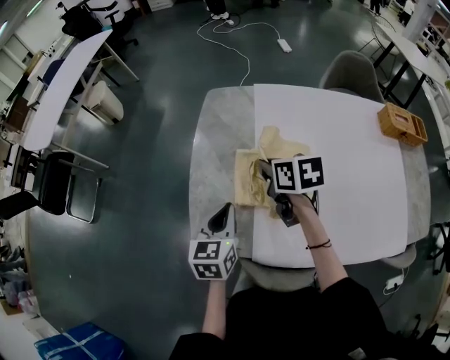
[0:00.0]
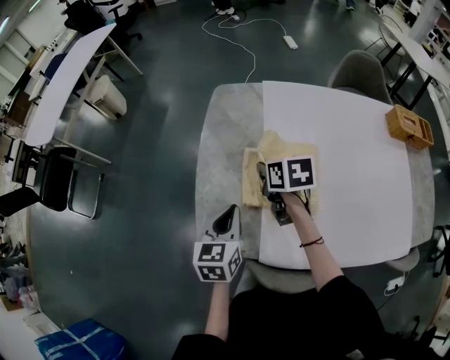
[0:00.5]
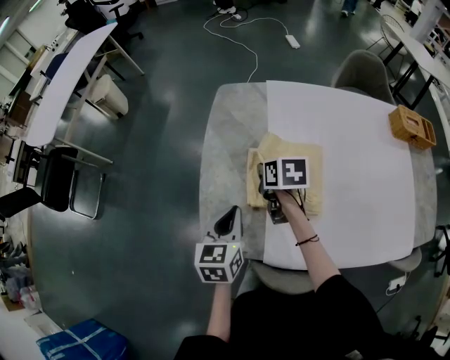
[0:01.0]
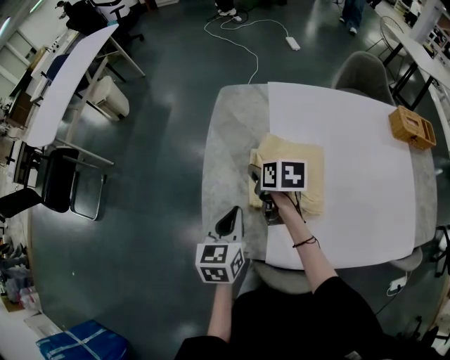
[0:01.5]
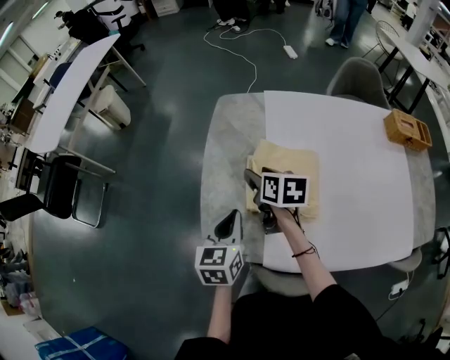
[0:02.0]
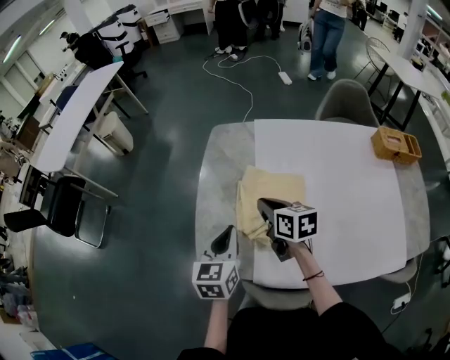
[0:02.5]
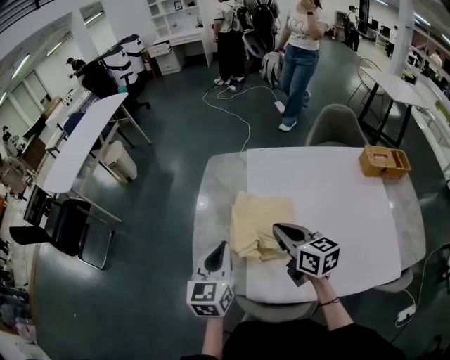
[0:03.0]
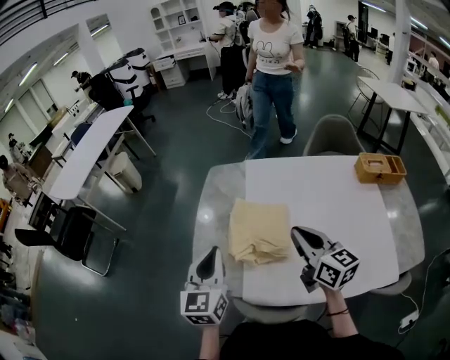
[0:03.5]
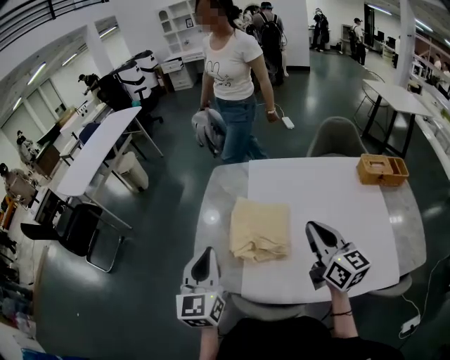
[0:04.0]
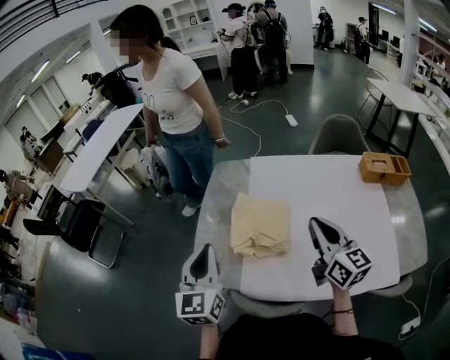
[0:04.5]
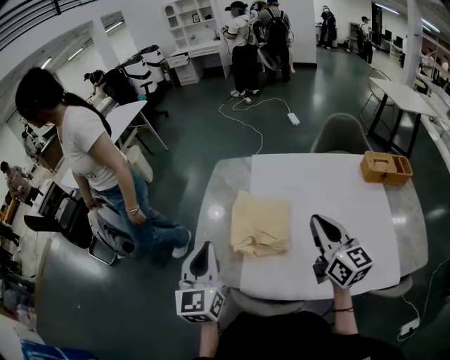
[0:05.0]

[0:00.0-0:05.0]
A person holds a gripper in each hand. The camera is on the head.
0:00.0 to 0:02.5: The right gripper opens and closes again.
0:02.5 to 0:05.0: The right gripper goes approximately 30 cm to the right, upward and backward, and points its fingers approximately 30 degrees further upward. Meanwhile the left gripper travels upward and backward by approximately 15 cm, and rotates some 30 degrees.

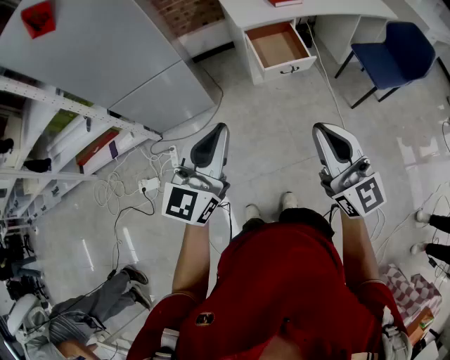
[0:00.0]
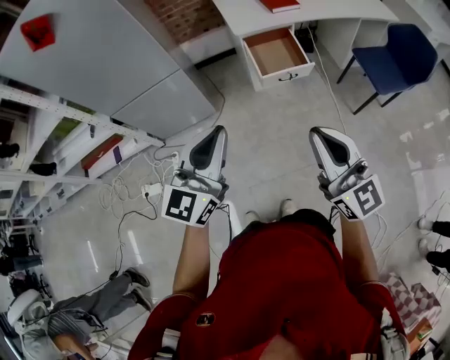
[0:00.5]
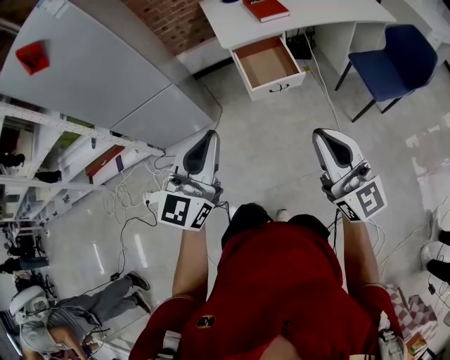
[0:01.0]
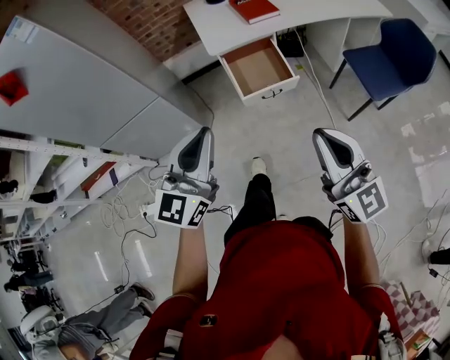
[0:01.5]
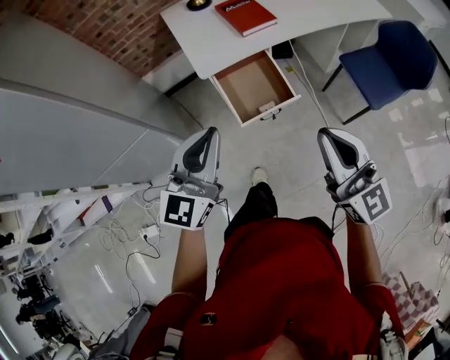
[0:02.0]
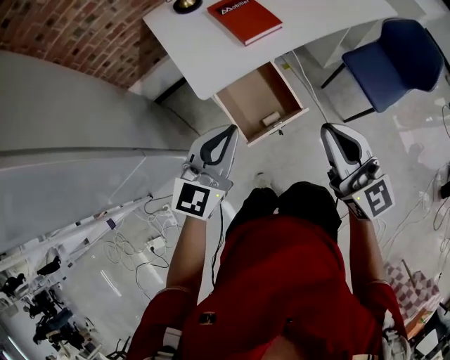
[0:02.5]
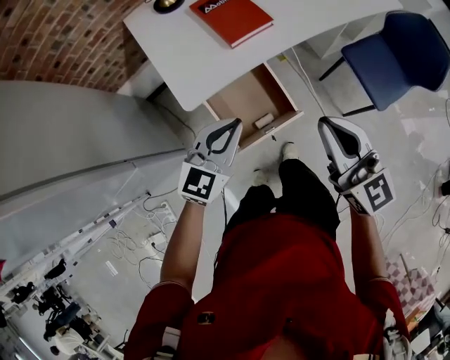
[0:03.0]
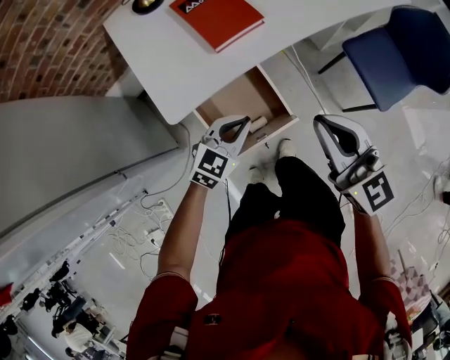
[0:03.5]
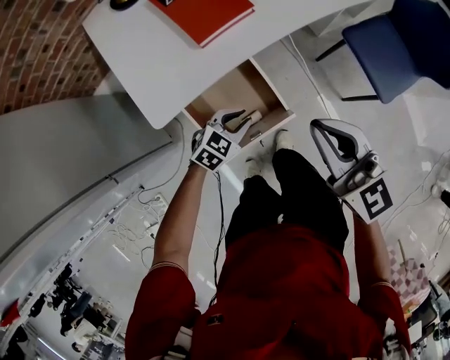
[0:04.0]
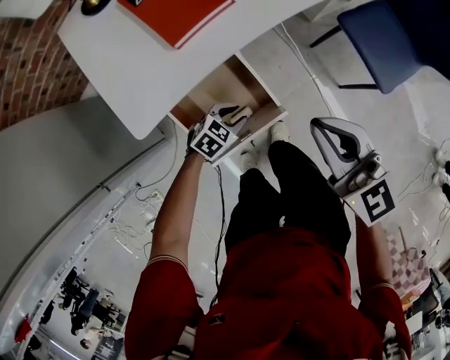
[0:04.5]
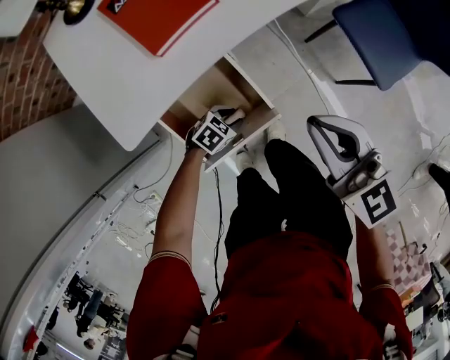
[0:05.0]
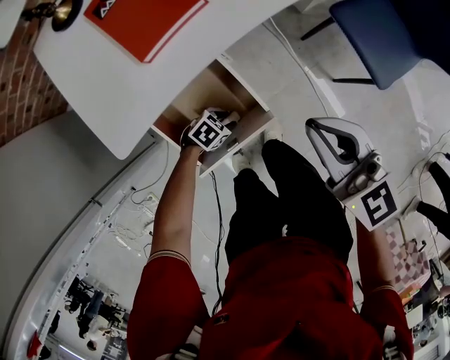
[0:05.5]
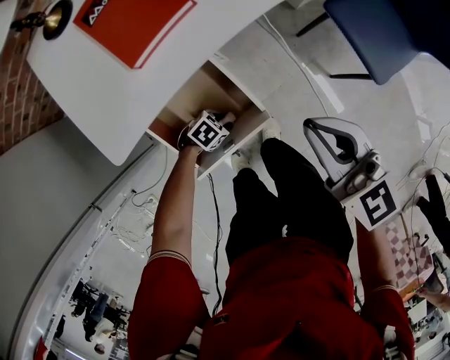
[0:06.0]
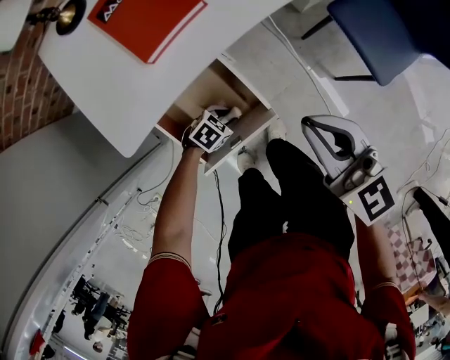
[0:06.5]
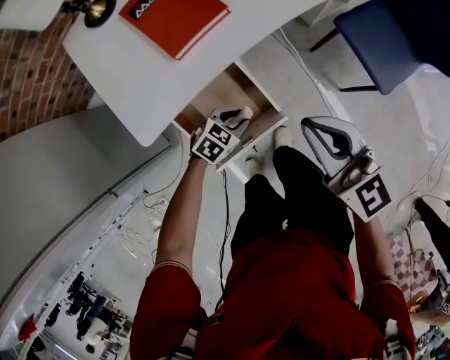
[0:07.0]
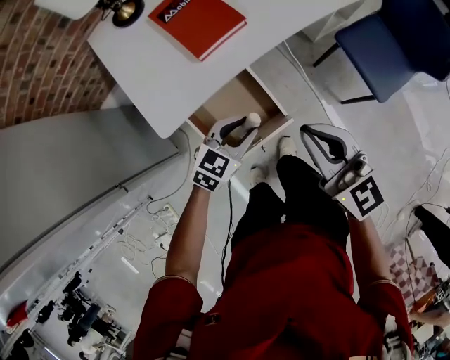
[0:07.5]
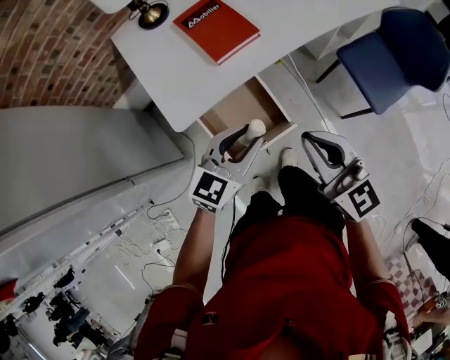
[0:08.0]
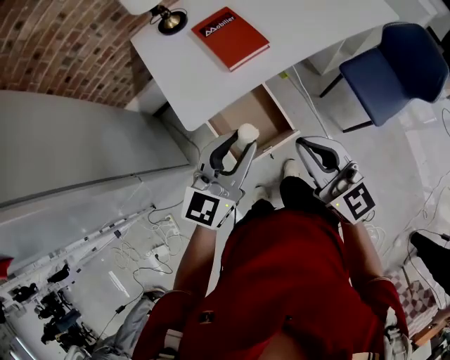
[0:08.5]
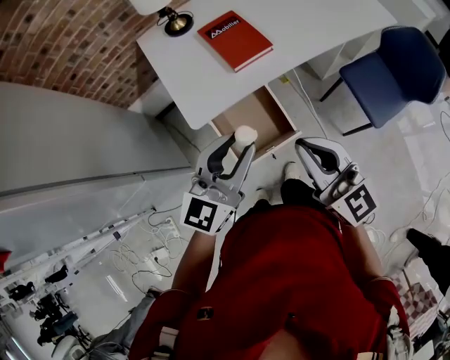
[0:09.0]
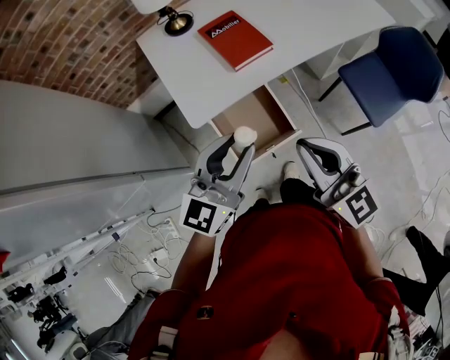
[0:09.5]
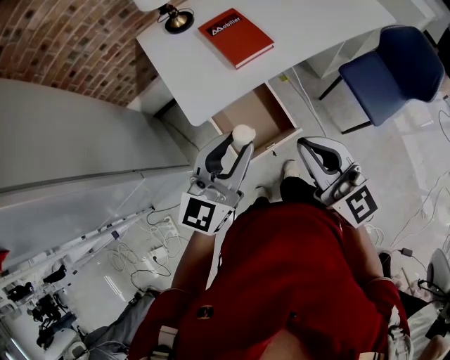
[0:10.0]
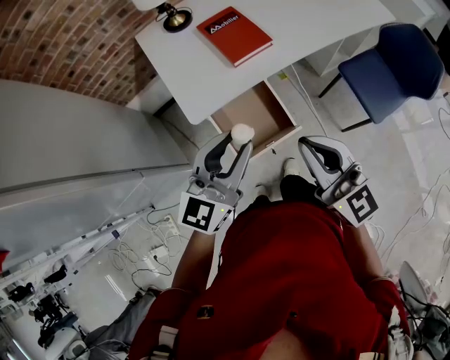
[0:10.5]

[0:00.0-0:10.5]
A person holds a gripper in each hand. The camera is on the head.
0:00.0 to 0:02.0: The left gripper travels forward by some 35 cm. Meanwhile the right gripper is displaced forward and to the right by some 35 cm.
0:02.0 to 0:04.0: The right gripper travels forward and downward by approximately 30 cm; the left gripper heads downward and forward, covering approximately 50 cm, tips its fingers downward by some 50 degrees, and opens.
0:04.0 to 0:06.5: The left gripper is displaced downward by about 15 cm, and changes its angle by some 30 degrees; the right gripper shifts approximately 5 cm downward.
0:06.5 to 0:08.5: The right gripper moves upward, about 15 cm. The left gripper is displaced upward by roughly 50 cm, and points its fingers approximately 60 degrees further upward.
0:08.5 to 0:10.5: The left gripper shifts by approximately 5 cm.

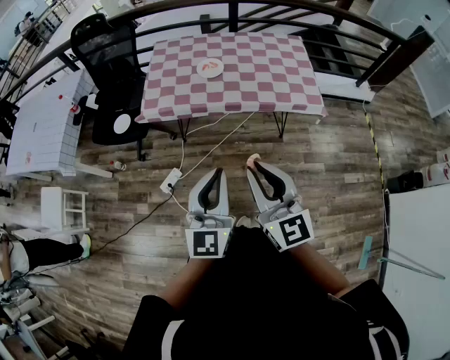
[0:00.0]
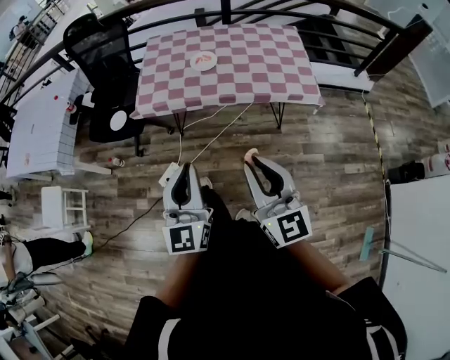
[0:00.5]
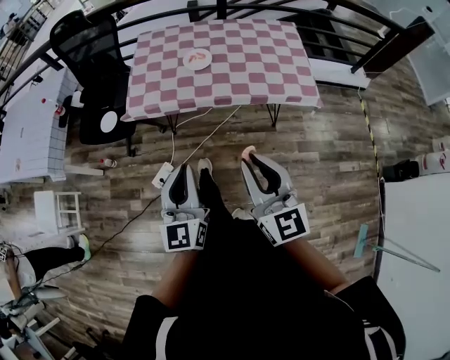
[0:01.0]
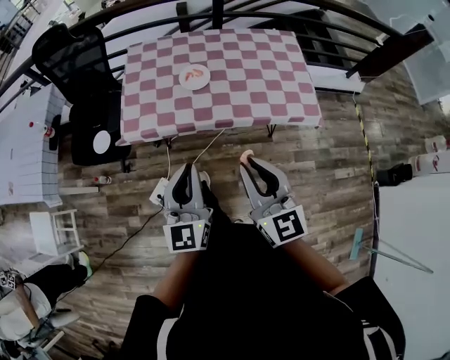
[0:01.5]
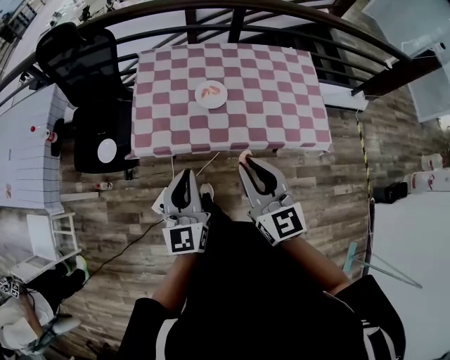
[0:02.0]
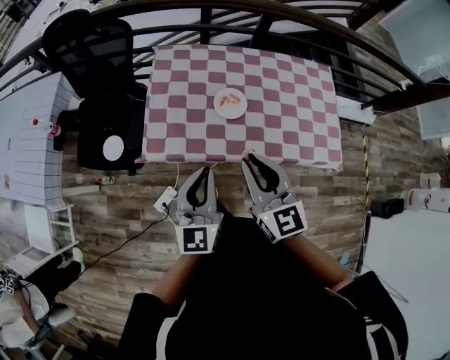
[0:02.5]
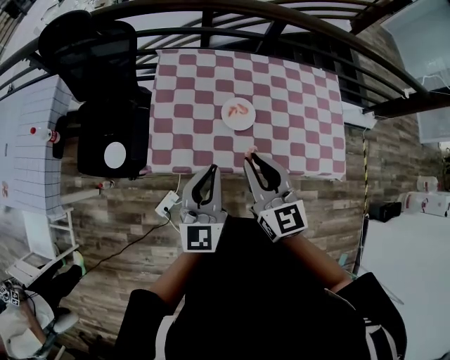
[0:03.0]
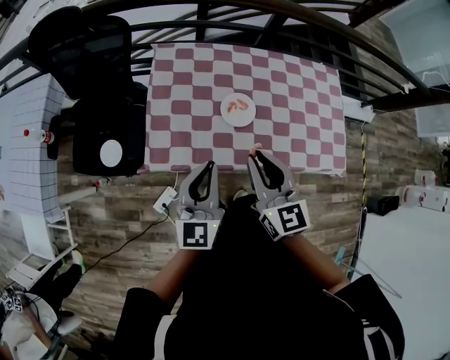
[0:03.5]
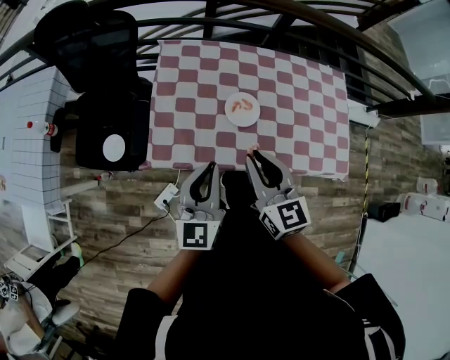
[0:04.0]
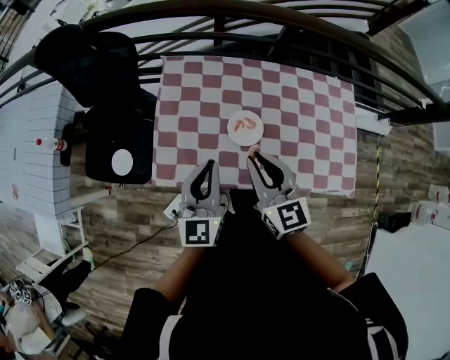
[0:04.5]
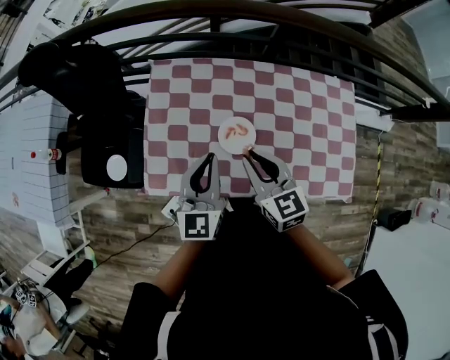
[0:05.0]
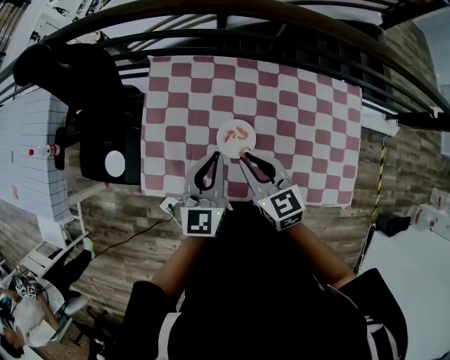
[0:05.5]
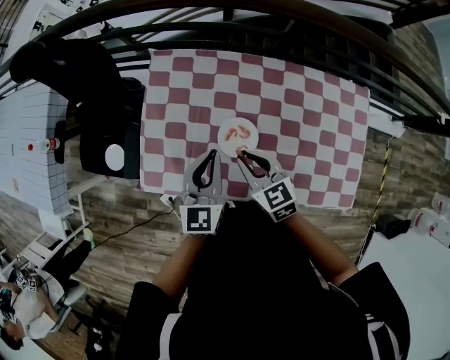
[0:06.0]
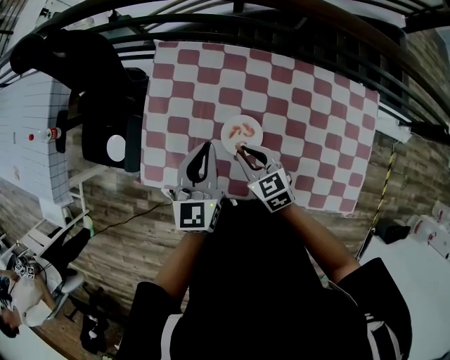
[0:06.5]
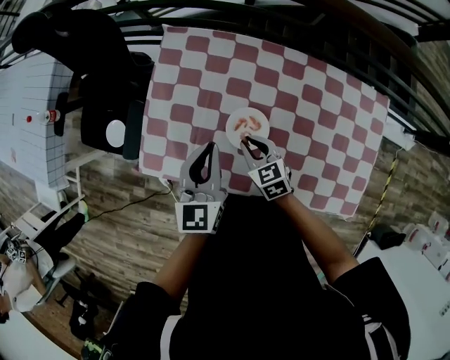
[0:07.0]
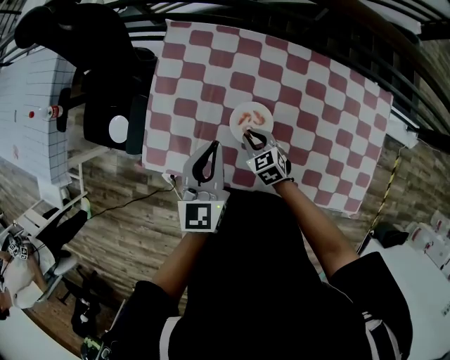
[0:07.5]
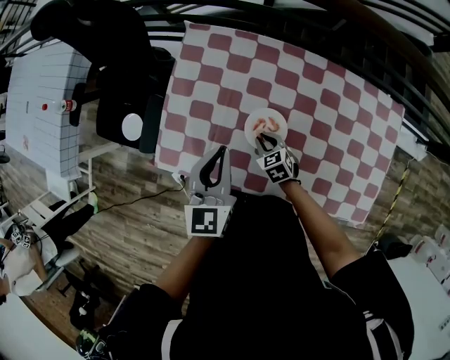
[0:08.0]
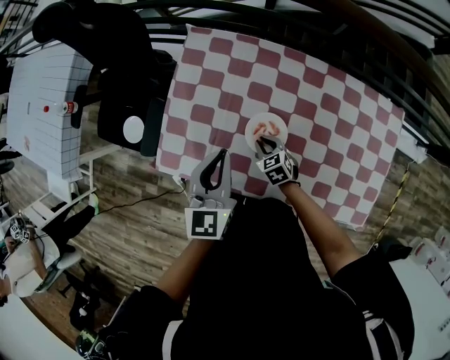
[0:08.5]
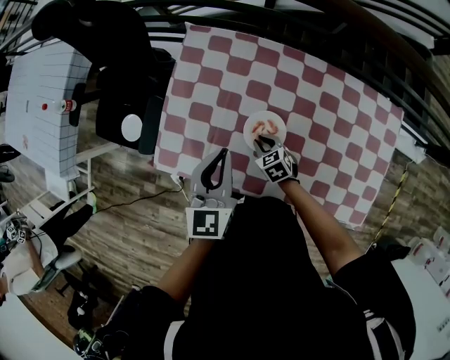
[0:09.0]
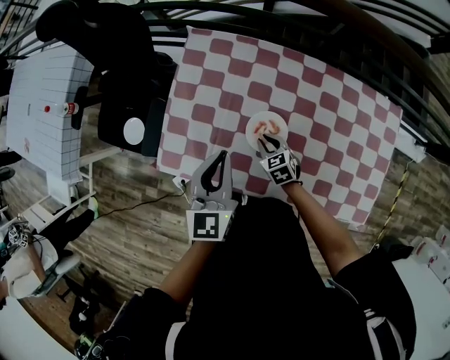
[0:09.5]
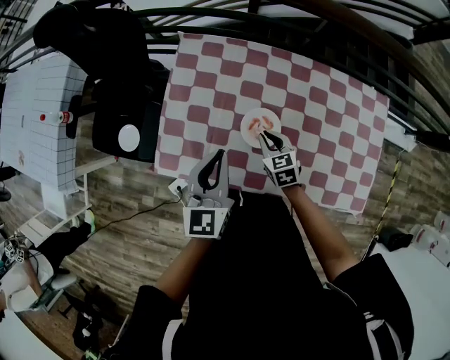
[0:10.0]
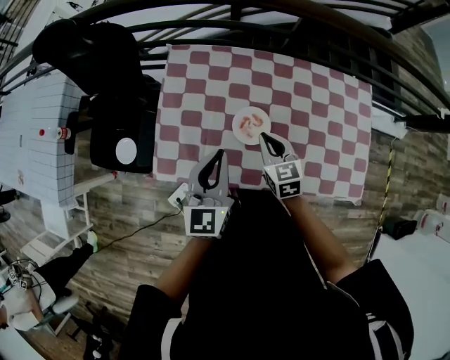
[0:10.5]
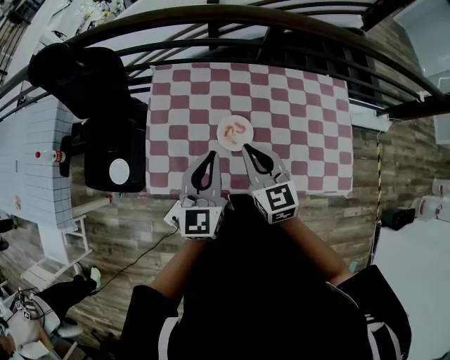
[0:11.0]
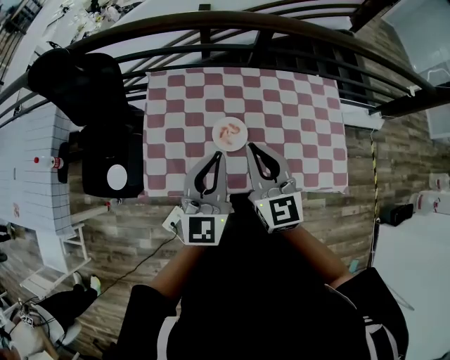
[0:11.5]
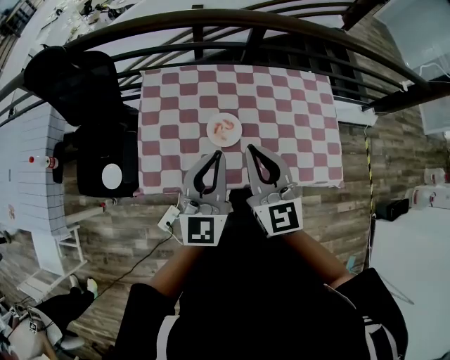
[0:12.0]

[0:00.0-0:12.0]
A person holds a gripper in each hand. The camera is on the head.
0:00.0 to 0:02.0: The two grippers go some 30 cm forward.
0:02.0 to 0:04.0: The right gripper shifts some 20 cm forward and to the left. The left gripper goes about 15 cm forward.
0:04.0 to 0:06.0: The right gripper is displaced downward, forward and to the right by some 20 cm, and swivels some 30 degrees, while the left gripper moves forward, to the right and downward, roughly 20 cm.
0:06.0 to 0:08.0: The right gripper travels downward by about 20 cm, and turns by some 20 degrees.
0:08.0 to 0:10.0: The right gripper heads upward, covering approximately 10 cm.
0:10.0 to 0:12.0: The right gripper travels upward by about 30 cm, and points its fingers approximately 40 degrees further upward. The left gripper shifts about 15 cm upward, backward and to the right, and swivels approximately 20 degrees.
